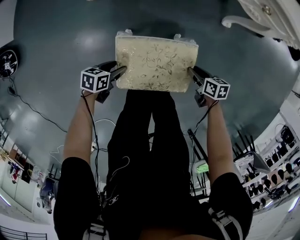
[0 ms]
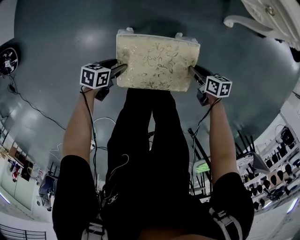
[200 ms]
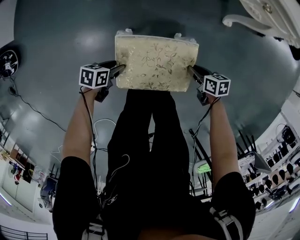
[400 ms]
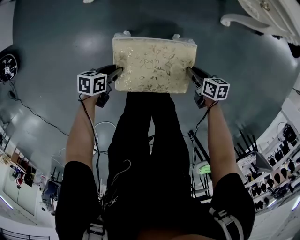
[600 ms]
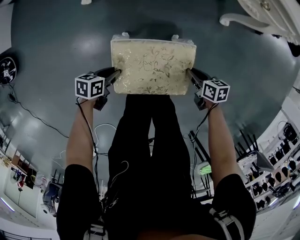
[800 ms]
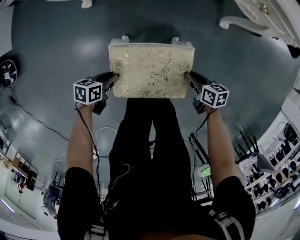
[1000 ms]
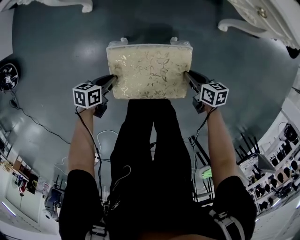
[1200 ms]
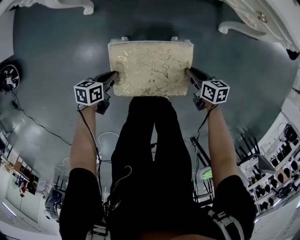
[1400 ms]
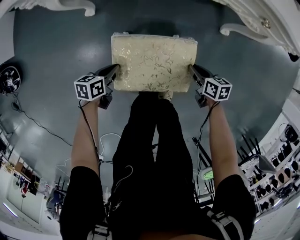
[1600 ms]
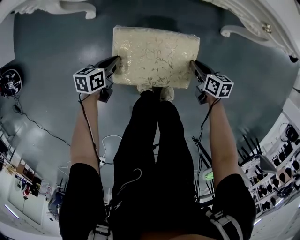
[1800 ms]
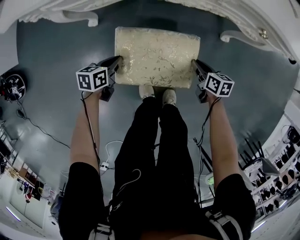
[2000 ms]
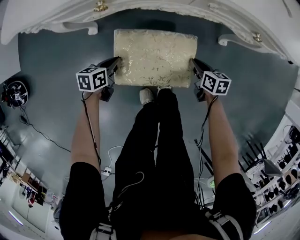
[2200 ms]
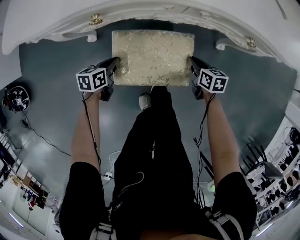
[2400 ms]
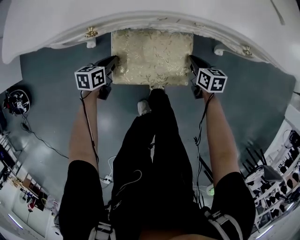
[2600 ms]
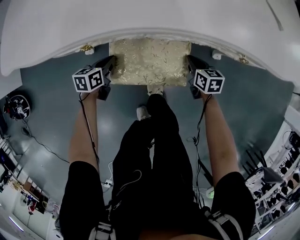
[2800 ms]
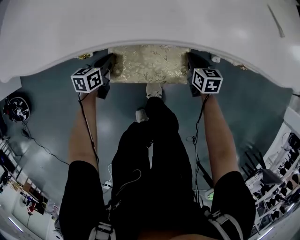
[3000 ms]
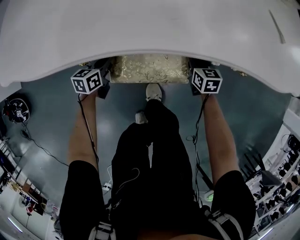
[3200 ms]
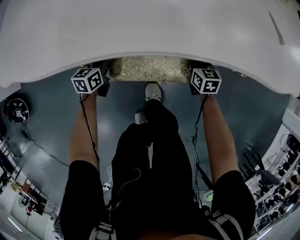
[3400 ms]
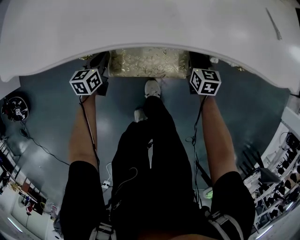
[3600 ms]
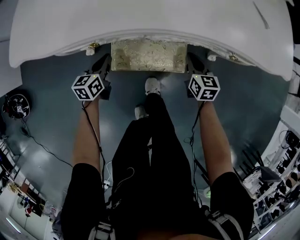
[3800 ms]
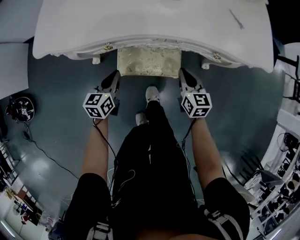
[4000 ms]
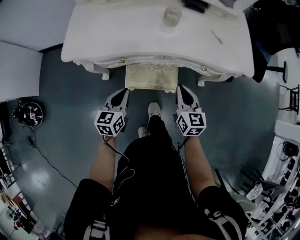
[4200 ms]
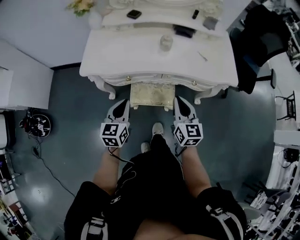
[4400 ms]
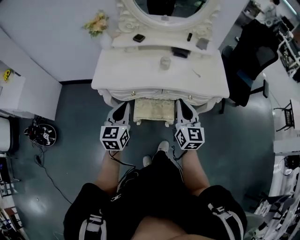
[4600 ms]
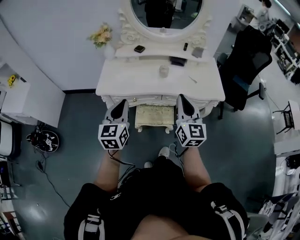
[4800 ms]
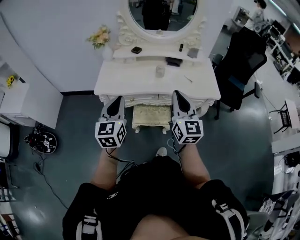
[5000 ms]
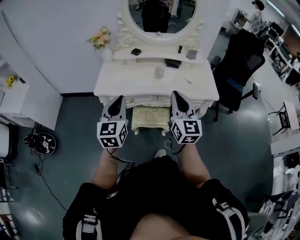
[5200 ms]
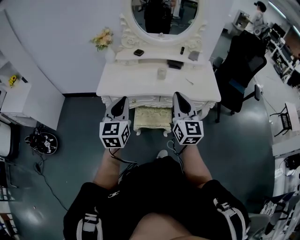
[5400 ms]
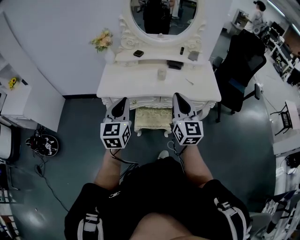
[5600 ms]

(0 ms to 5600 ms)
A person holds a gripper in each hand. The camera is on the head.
0 ms - 1400 ms: The left gripper closes its fingers.
1400 ms - 2800 ms: The grippers both shift forward by roughly 30 cm. The right gripper rotates roughly 20 degrees.
2800 ms - 4200 ms: Both grippers travel together upward, roughly 35 cm. The left gripper changes its angle by about 30 degrees. Meanwhile the right gripper turns by about 30 degrees.
4200 ms - 5600 ms: Both grippers move upward, some 40 cm. The left gripper rotates some 30 degrees, while the right gripper turns by about 30 degrees.

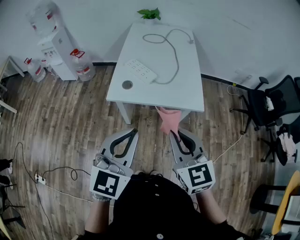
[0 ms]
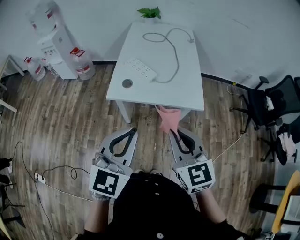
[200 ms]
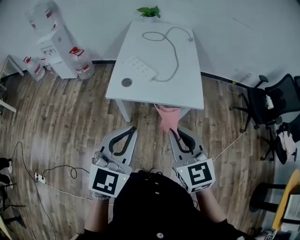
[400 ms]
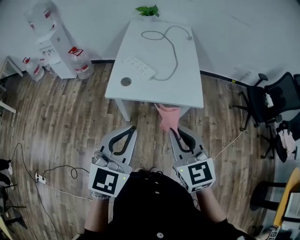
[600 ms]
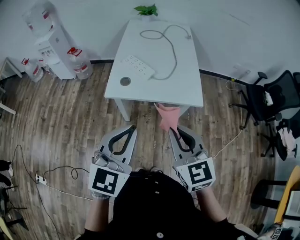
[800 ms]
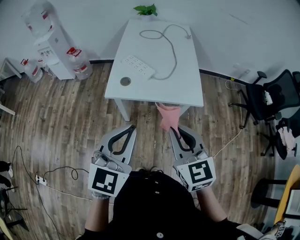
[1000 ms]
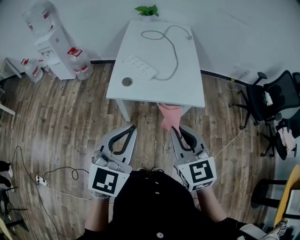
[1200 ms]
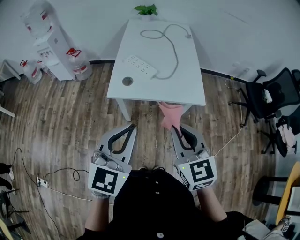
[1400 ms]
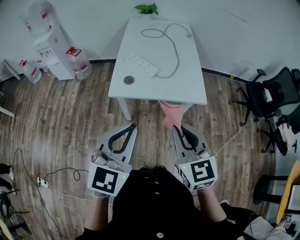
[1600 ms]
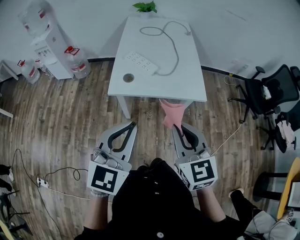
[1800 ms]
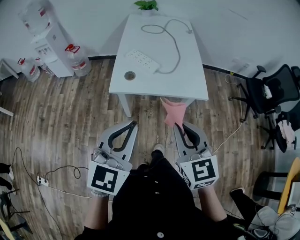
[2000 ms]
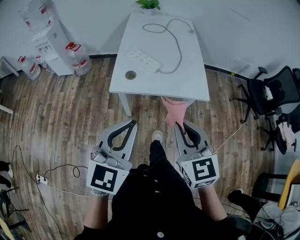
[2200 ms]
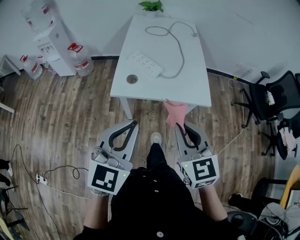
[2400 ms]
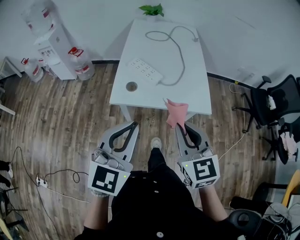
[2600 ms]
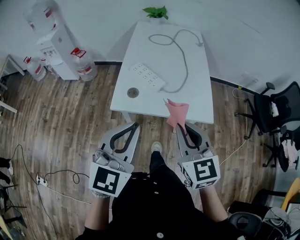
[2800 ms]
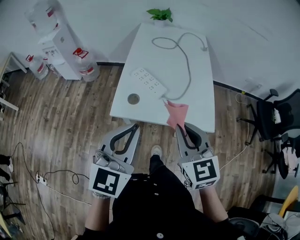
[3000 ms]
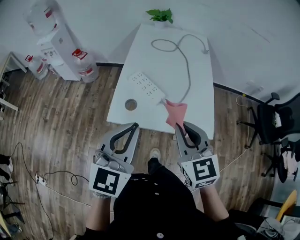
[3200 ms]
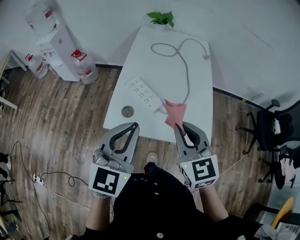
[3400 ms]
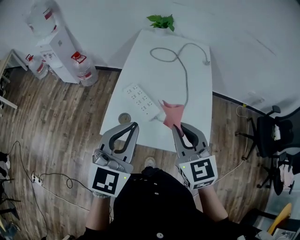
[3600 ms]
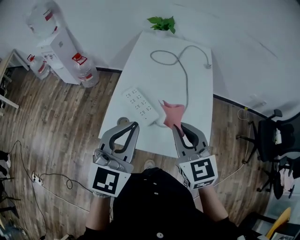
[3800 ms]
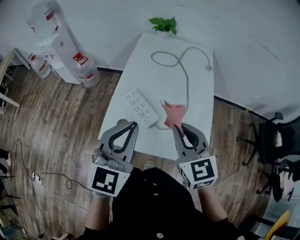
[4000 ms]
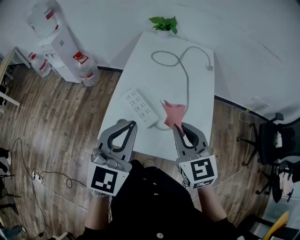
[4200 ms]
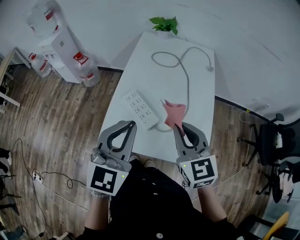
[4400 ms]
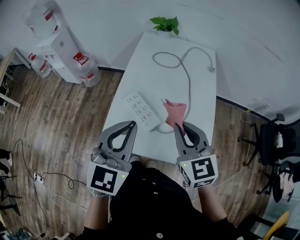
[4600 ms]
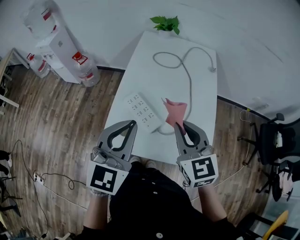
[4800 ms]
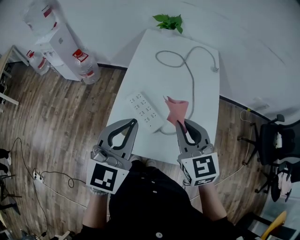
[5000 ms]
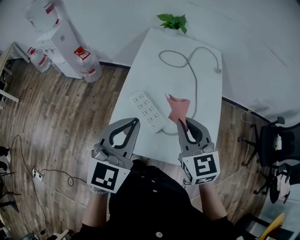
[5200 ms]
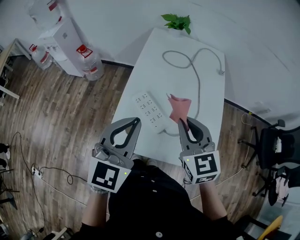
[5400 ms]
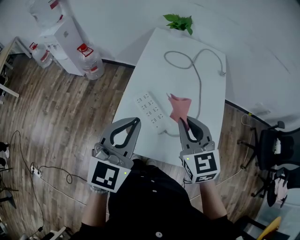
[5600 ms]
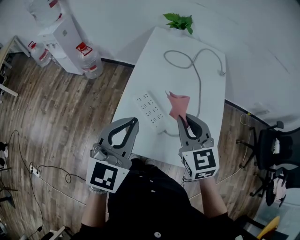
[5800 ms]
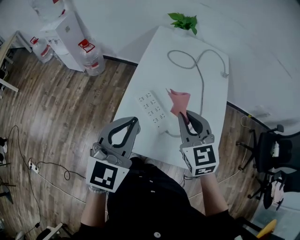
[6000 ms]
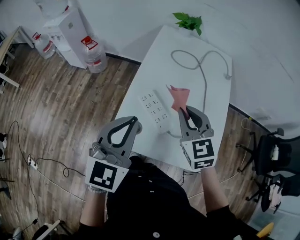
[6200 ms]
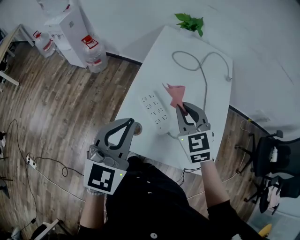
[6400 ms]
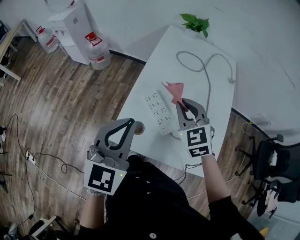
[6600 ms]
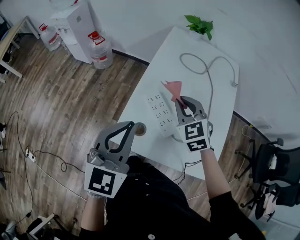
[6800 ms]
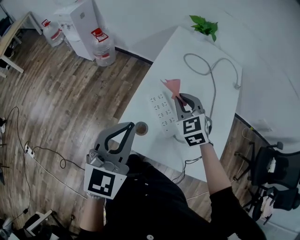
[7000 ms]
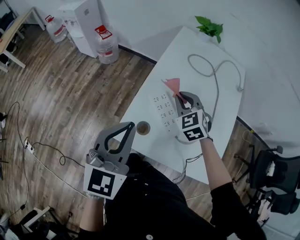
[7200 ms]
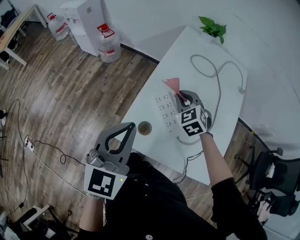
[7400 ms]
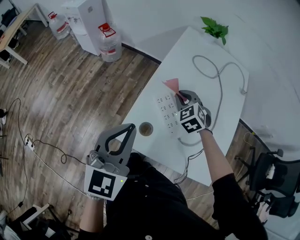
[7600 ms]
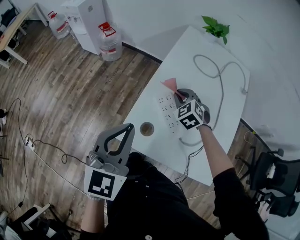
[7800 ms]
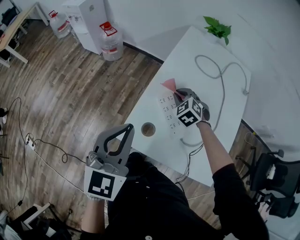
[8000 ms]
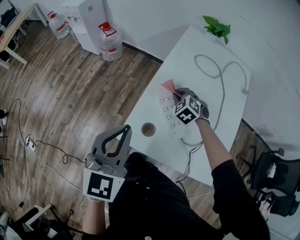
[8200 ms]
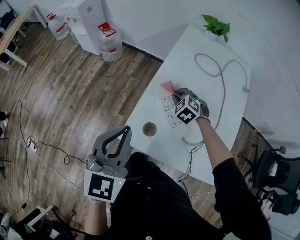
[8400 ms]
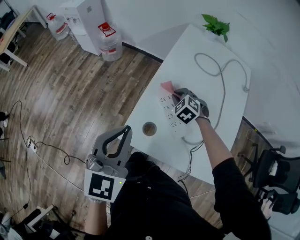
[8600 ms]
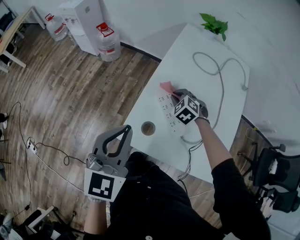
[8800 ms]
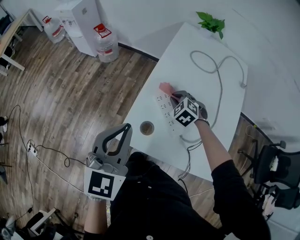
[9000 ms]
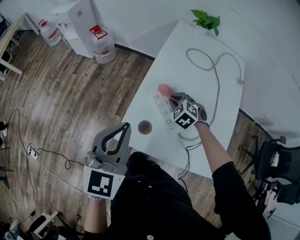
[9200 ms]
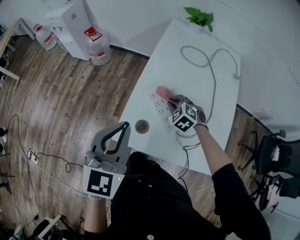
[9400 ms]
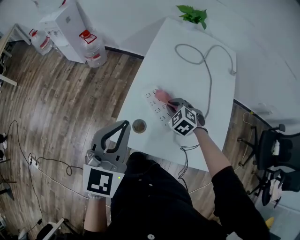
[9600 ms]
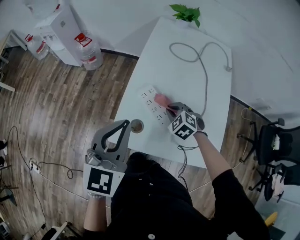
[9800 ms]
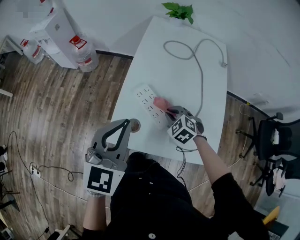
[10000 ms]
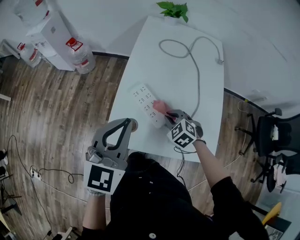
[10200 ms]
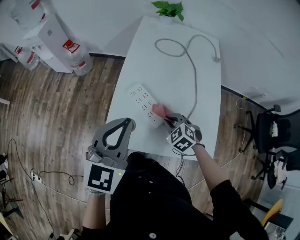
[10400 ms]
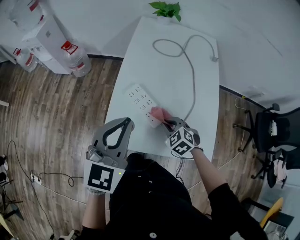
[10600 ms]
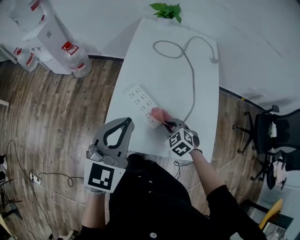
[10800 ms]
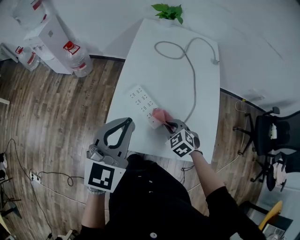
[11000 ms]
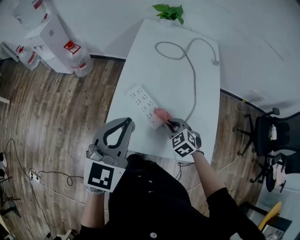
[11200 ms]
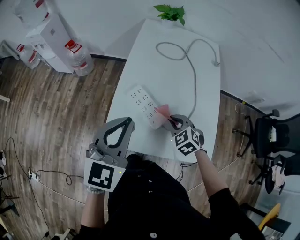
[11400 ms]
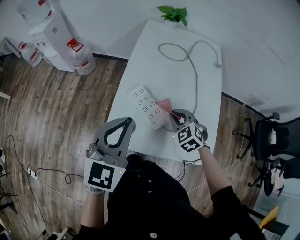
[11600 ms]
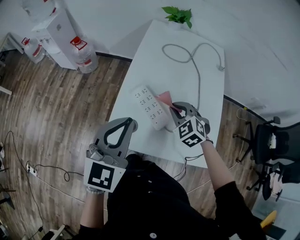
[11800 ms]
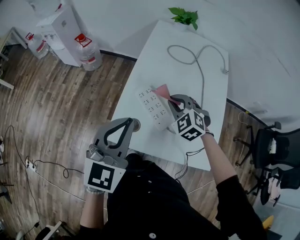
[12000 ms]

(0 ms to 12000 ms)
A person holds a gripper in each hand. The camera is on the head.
0 ms - 1600 ms: There are only small adjustments of the grippers.
1600 ms - 3000 ms: The two grippers go roughly 15 cm forward.
3000 ms - 4400 ms: Both grippers travel together forward, approximately 20 cm.
4400 ms - 6000 ms: The left gripper shifts roughly 10 cm to the left and forward, while the right gripper is displaced forward and to the left by roughly 10 cm.
6000 ms - 7600 ms: The right gripper heads downward, forward and to the left, covering about 20 cm, and swivels about 30 degrees. Meanwhile the left gripper shifts about 10 cm to the left.
7600 ms - 9000 ms: The right gripper is displaced downward by approximately 5 cm.
9000 ms - 10400 ms: The right gripper goes roughly 15 cm backward and to the right. Meanwhile the left gripper travels to the right by about 10 cm.
10400 ms - 12000 ms: The right gripper goes some 15 cm upward and forward.

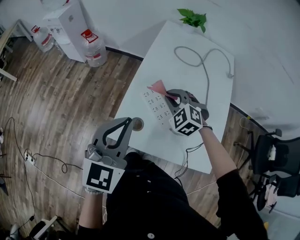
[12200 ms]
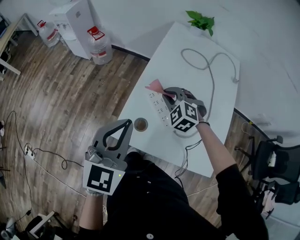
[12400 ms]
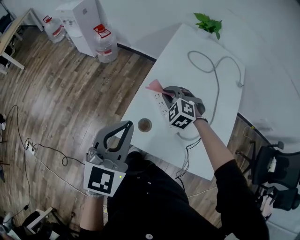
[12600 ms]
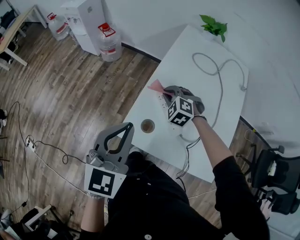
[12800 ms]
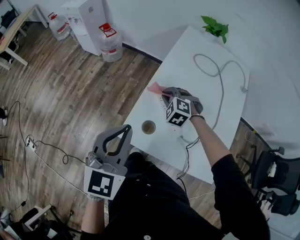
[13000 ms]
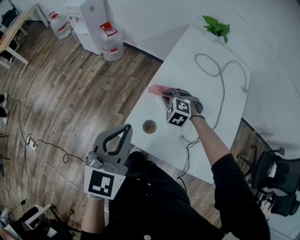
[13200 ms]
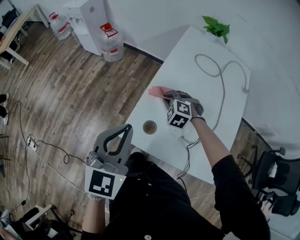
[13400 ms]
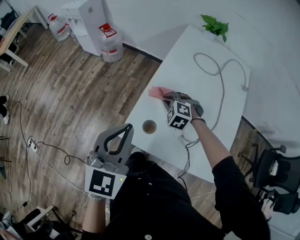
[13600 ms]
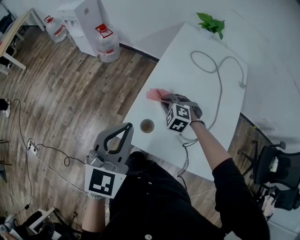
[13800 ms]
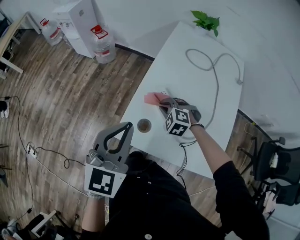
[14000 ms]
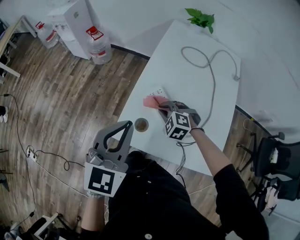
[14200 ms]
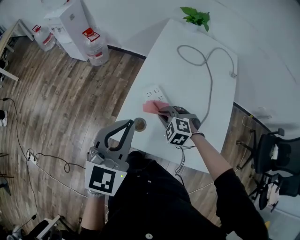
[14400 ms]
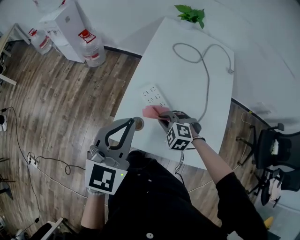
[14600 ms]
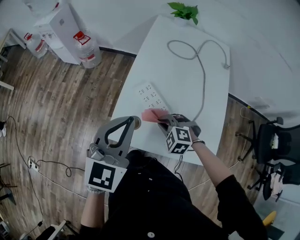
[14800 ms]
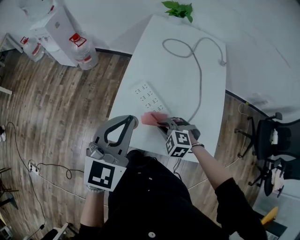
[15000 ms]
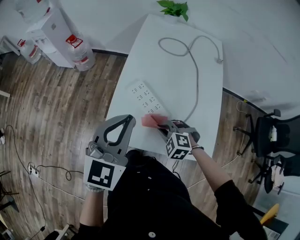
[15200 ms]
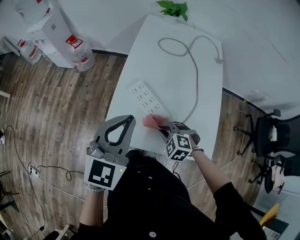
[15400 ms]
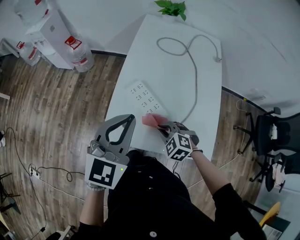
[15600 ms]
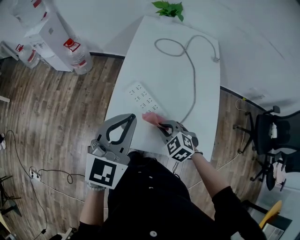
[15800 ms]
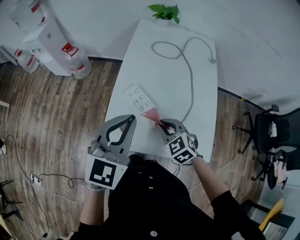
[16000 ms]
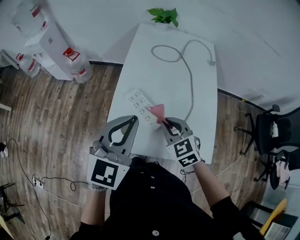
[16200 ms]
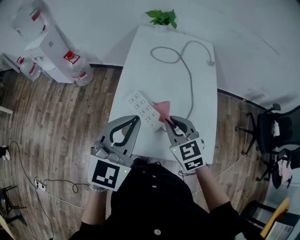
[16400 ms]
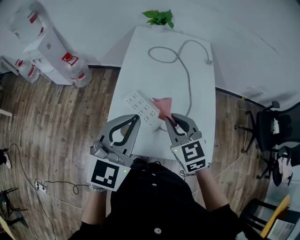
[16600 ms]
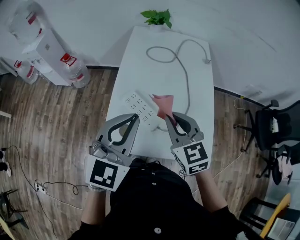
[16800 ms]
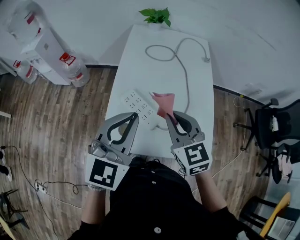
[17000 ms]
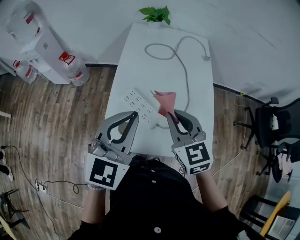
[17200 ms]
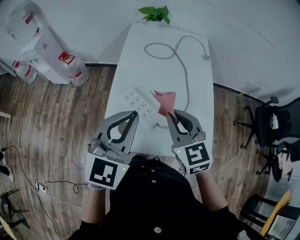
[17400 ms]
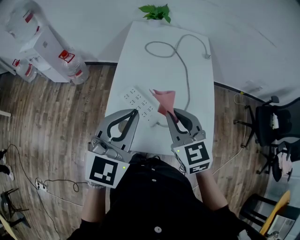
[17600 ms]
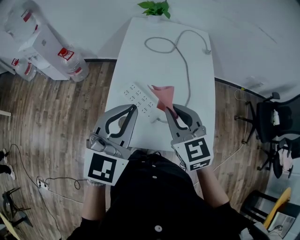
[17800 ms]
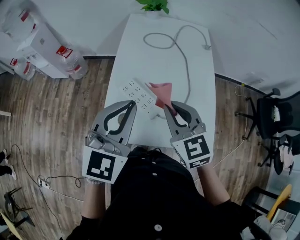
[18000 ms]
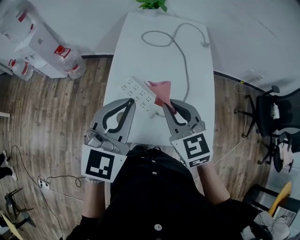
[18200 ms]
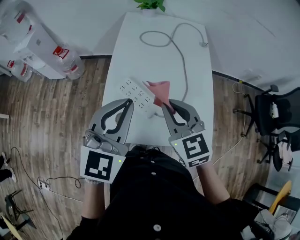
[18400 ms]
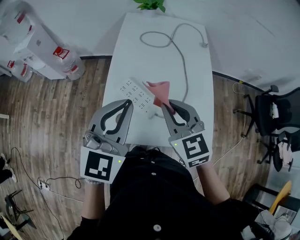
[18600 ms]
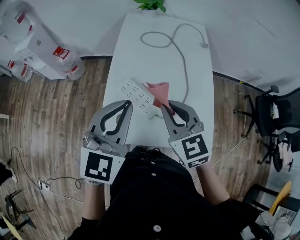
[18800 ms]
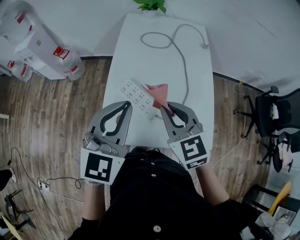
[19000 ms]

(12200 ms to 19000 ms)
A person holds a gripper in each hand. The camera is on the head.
12200 ms - 13600 ms: The right gripper is displaced downward and to the left by approximately 10 cm, while the left gripper heads to the left, covering some 5 cm.
13600 ms - 15000 ms: The right gripper moves backward and to the right, approximately 20 cm, while the left gripper heads to the right, covering some 10 cm.
15000 ms - 16200 ms: The right gripper goes approximately 10 cm upward, and rotates approximately 40 degrees.
16200 ms - 17600 ms: The right gripper is displaced upward by some 10 cm.
17600 ms - 19000 ms: The two grippers keep their place.
